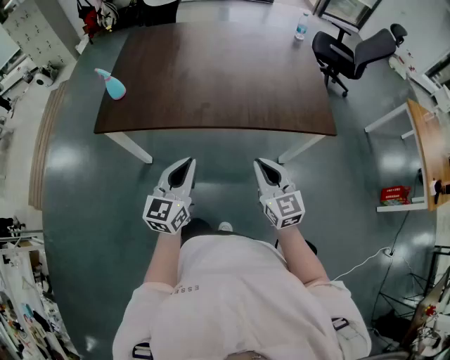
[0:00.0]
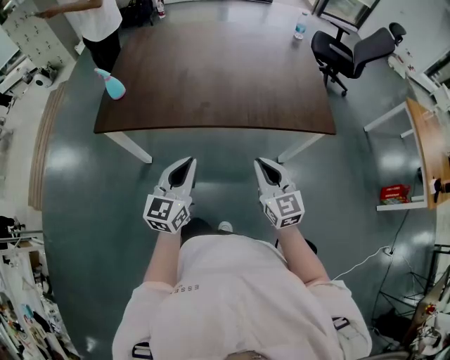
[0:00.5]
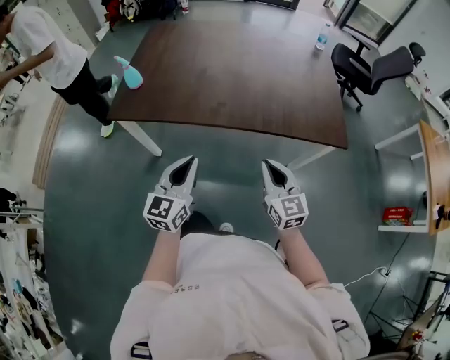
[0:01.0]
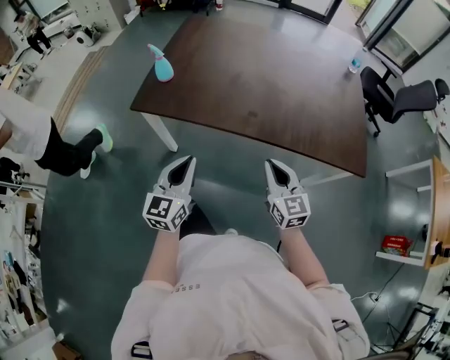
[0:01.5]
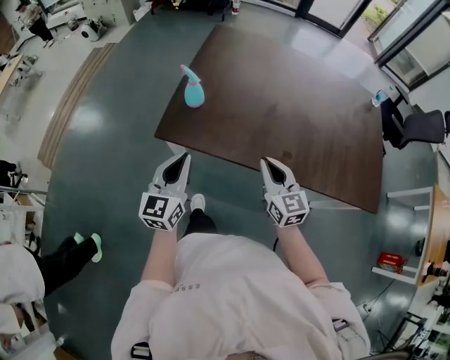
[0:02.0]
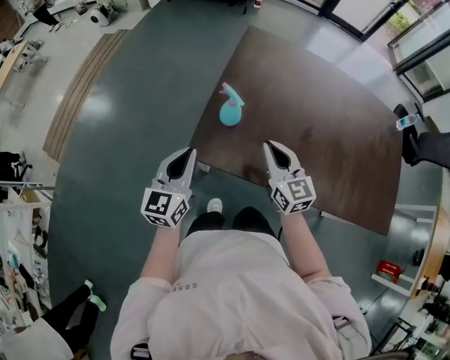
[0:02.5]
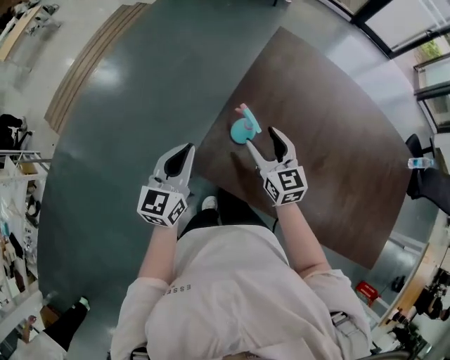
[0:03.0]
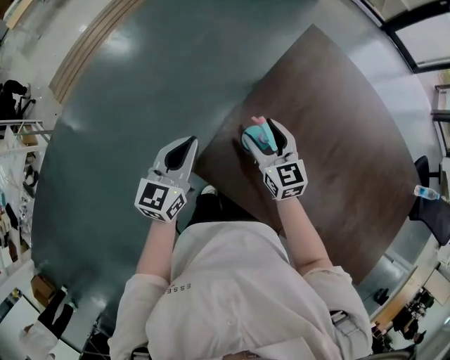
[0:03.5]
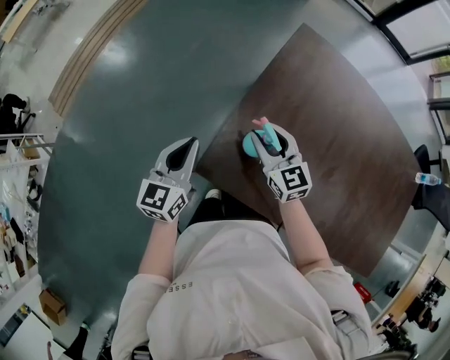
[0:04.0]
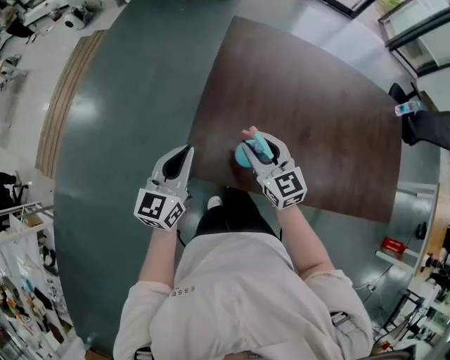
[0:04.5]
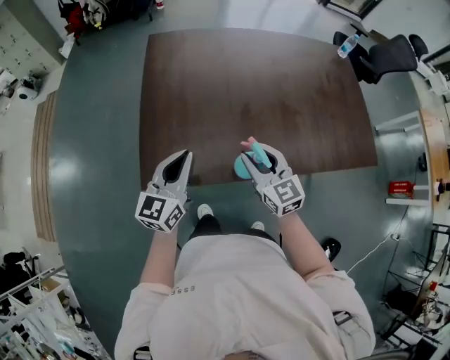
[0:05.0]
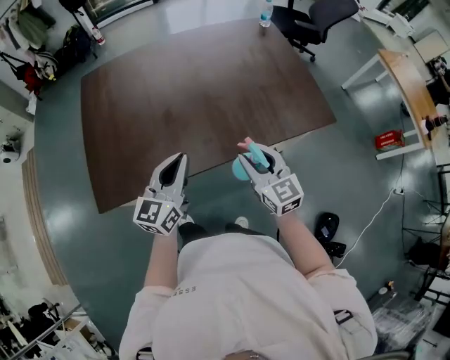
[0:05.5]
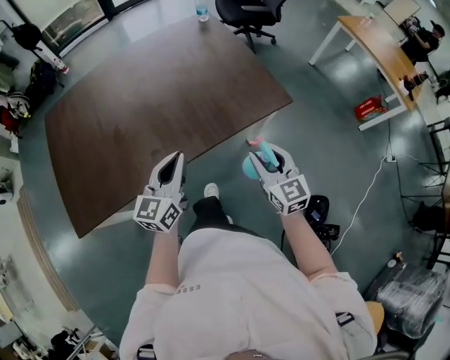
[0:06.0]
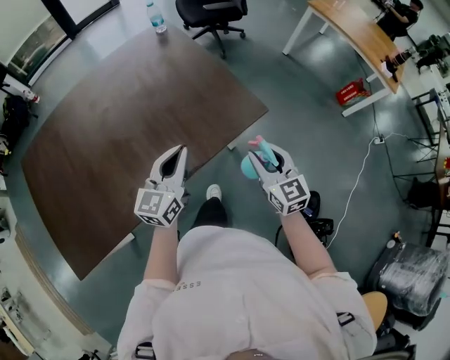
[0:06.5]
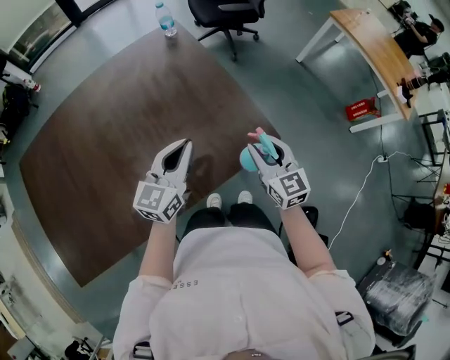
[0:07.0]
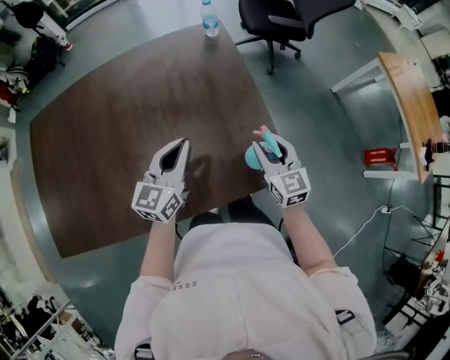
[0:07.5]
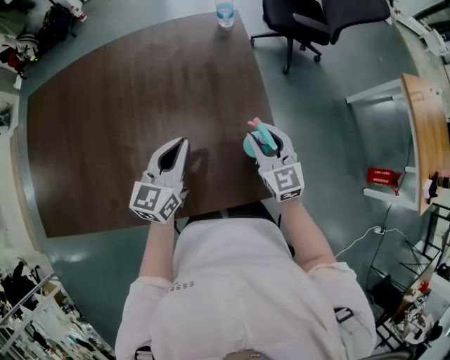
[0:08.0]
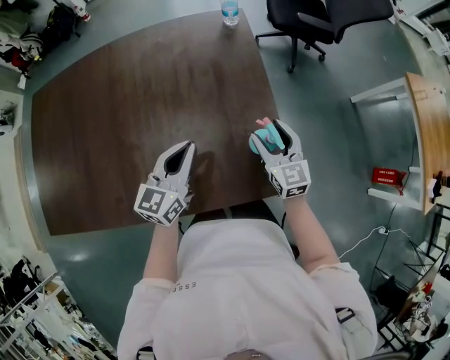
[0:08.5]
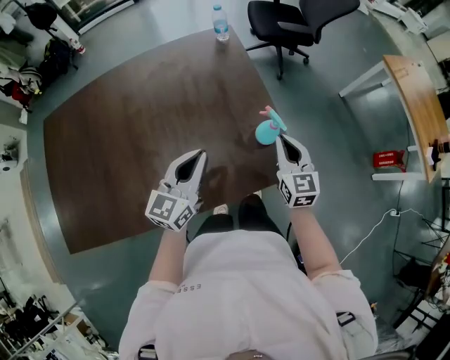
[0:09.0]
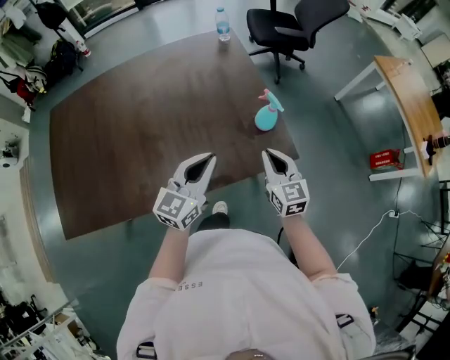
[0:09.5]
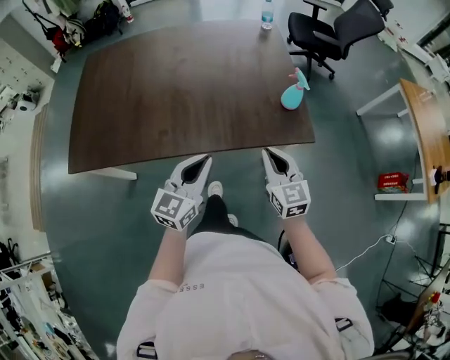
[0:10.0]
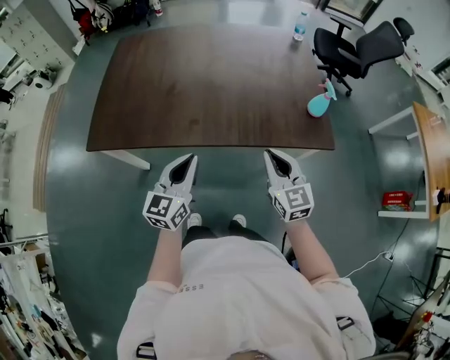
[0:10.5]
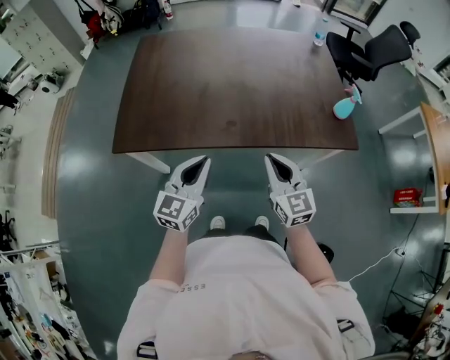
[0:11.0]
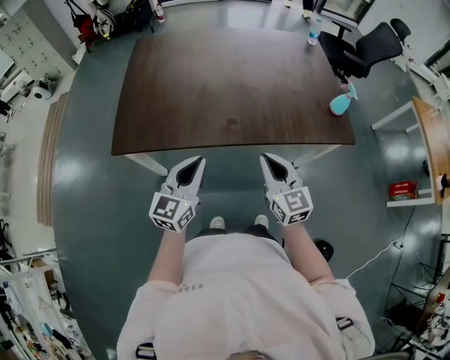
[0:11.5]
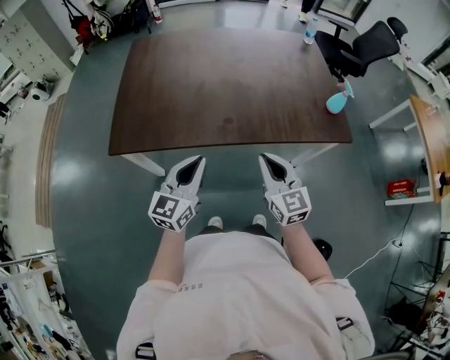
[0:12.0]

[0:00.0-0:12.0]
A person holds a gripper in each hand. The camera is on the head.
0:00.0 to 0:02.0: Both grippers move to the left and forward, some 30 cm.
0:02.0 to 0:04.0: Both grippers travel together forward and to the left, about 30 cm. The right gripper changes its angle by approximately 20 degrees, and opens its fingers.
0:04.0 to 0:06.0: The two grippers travel together, approximately 70 cm. The right gripper swivels approximately 60 degrees; the left gripper changes its angle by some 60 degrees.
0:06.0 to 0:08.0: The right gripper changes place by roughly 40 cm, while the left gripper shifts by roughly 35 cm.
0:08.0 to 0:10.0: Both grippers travel together backward, some 30 cm. The right gripper closes its fingers.
0:10.0 to 0:12.0: The grippers both shift to the left by roughly 25 cm.

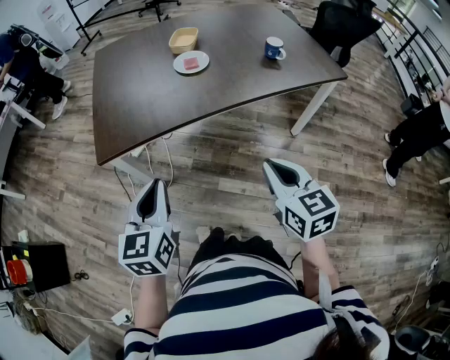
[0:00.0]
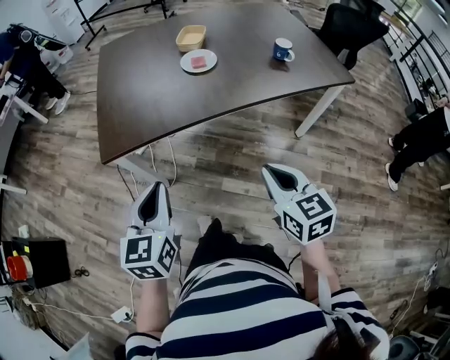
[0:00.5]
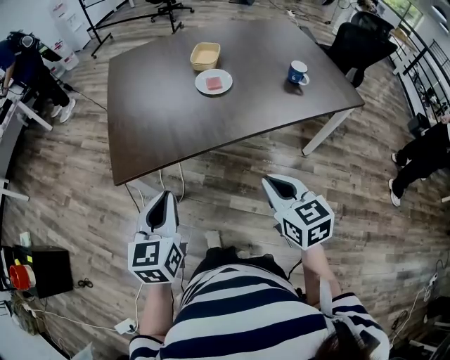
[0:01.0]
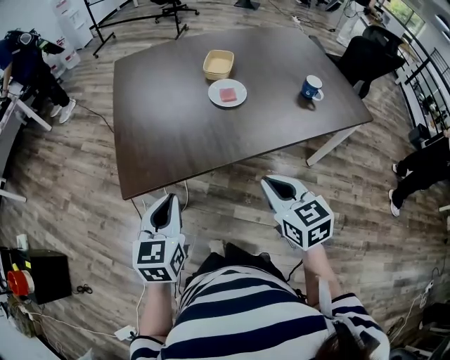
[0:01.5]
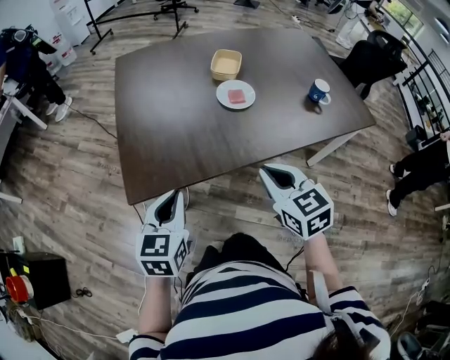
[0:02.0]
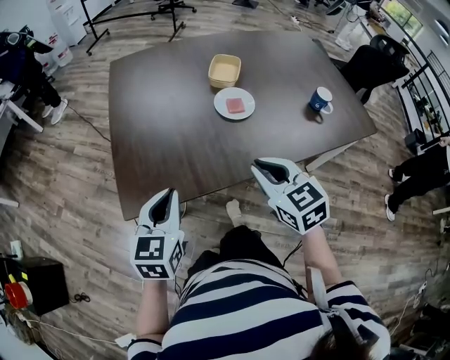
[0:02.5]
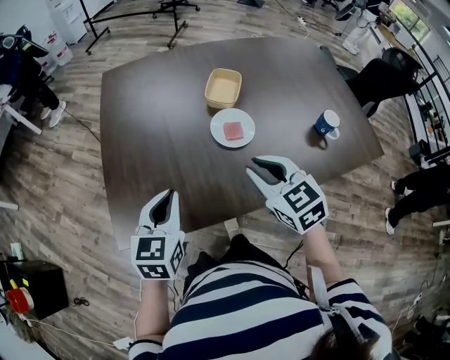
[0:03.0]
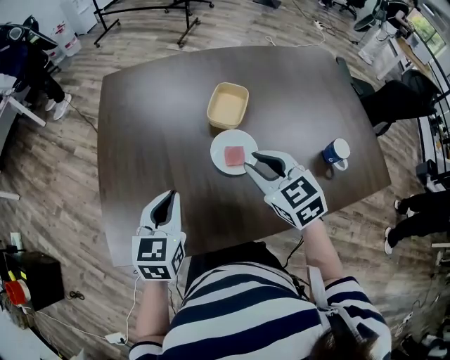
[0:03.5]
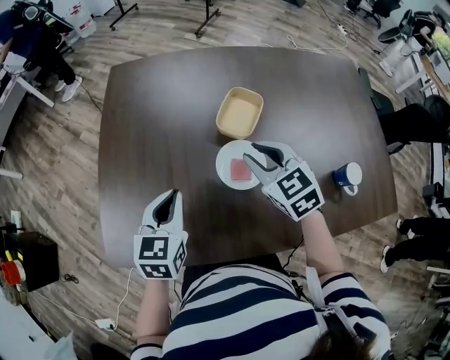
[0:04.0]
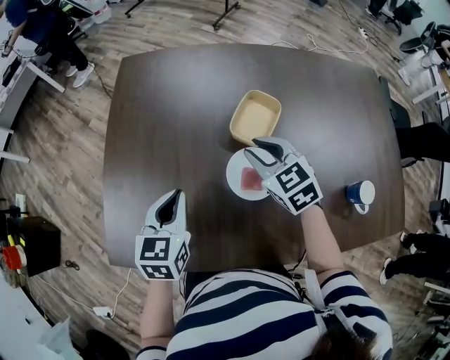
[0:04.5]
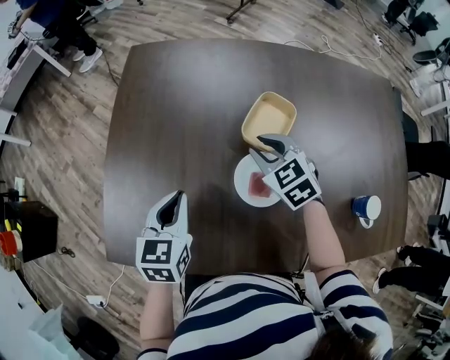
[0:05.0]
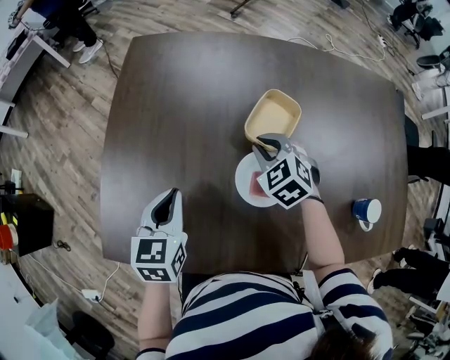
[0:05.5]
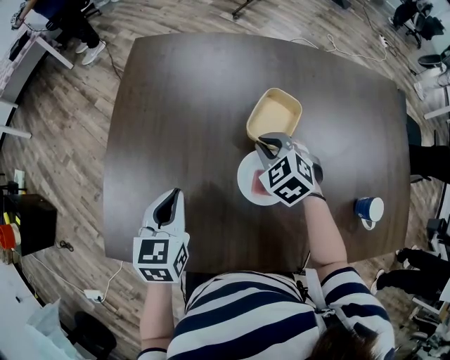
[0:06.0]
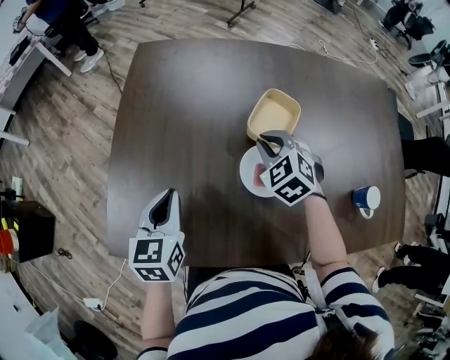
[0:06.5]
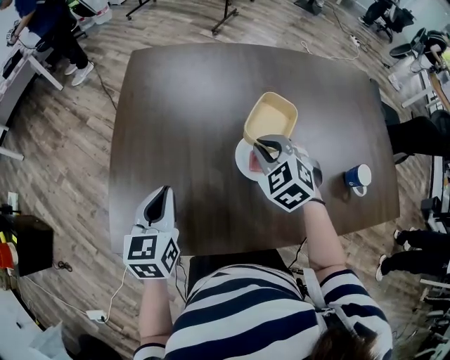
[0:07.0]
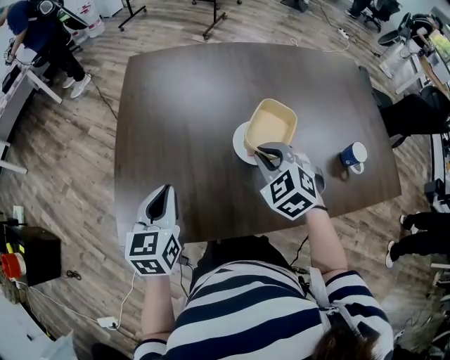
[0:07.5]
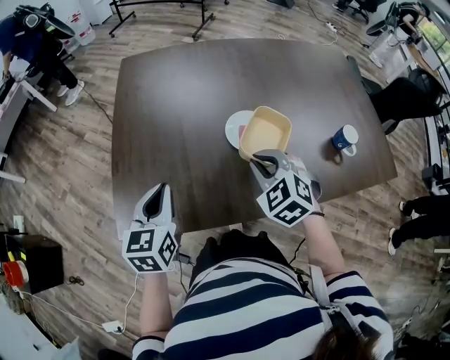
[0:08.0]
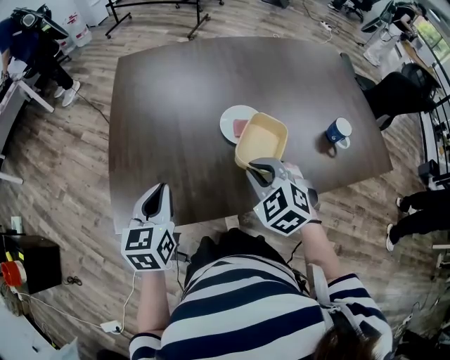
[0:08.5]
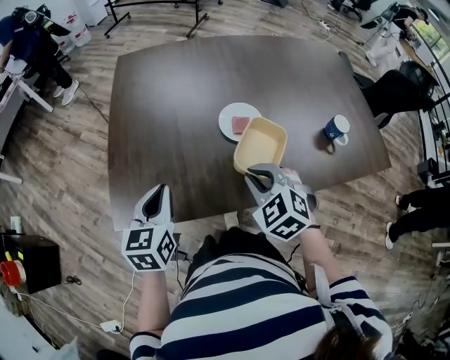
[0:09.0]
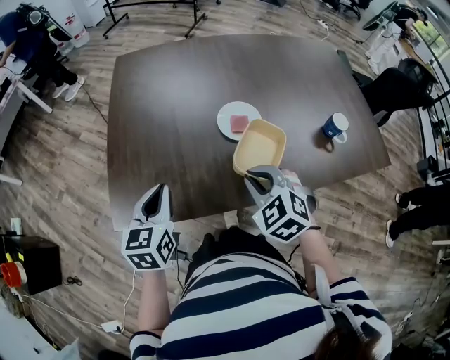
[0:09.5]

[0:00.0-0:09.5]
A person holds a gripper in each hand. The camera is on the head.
0:00.0 to 0:02.0: Both grippers travel together forward and to the left, roughly 25 cm.
0:02.0 to 0:04.0: The left gripper goes roughly 35 cm forward and to the right; the right gripper is displaced forward by some 40 cm, rotates roughly 20 degrees, and opens up.
0:04.0 to 0:05.5: The left gripper goes about 5 cm forward. The right gripper heads downward and forward, covering about 15 cm, and changes its angle by some 20 degrees.
0:05.5 to 0:07.5: The right gripper goes approximately 20 cm backward and upward; the left gripper shifts roughly 15 cm backward, to the left and upward.
0:07.5 to 0:09.5: The right gripper shifts approximately 15 cm backward. The left gripper heads backward, covering some 5 cm.

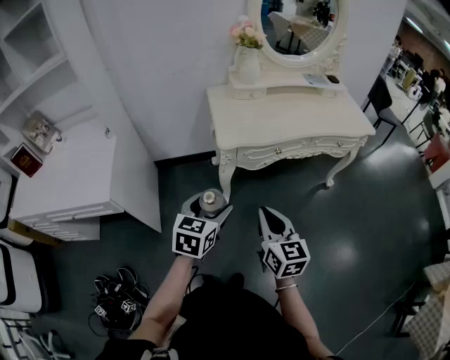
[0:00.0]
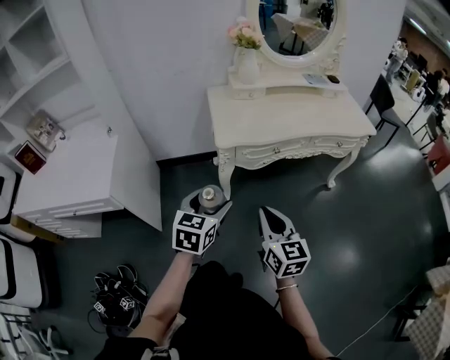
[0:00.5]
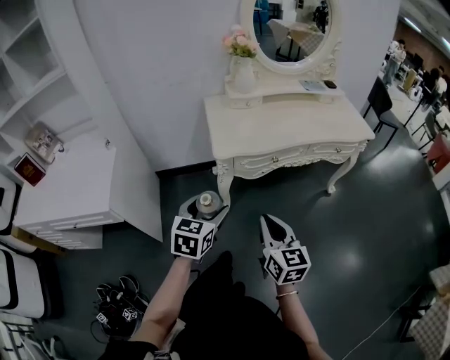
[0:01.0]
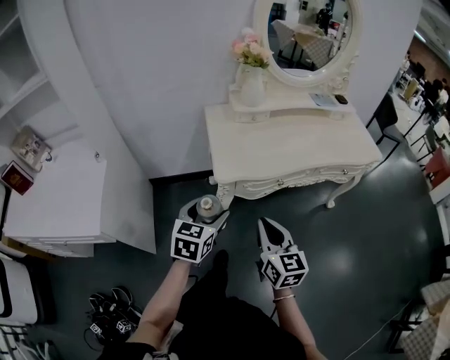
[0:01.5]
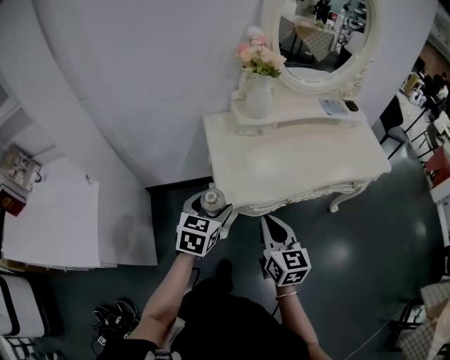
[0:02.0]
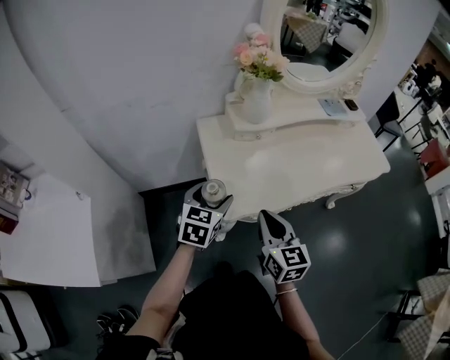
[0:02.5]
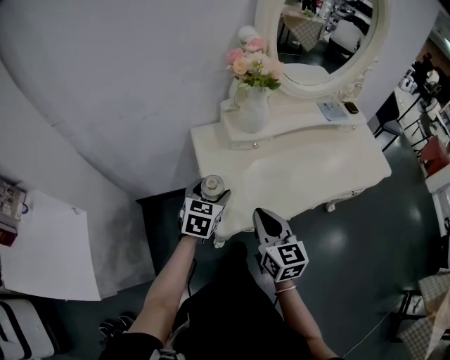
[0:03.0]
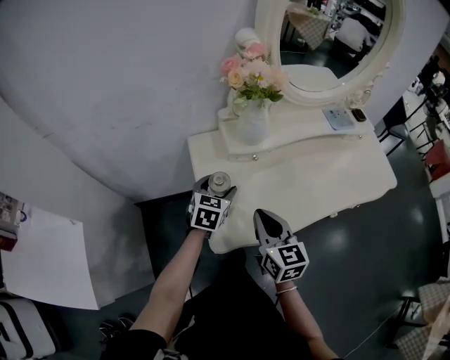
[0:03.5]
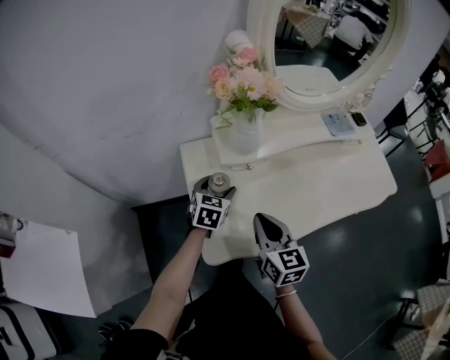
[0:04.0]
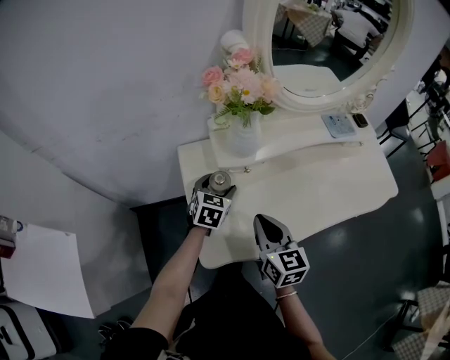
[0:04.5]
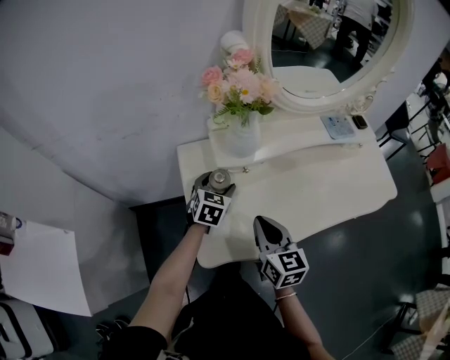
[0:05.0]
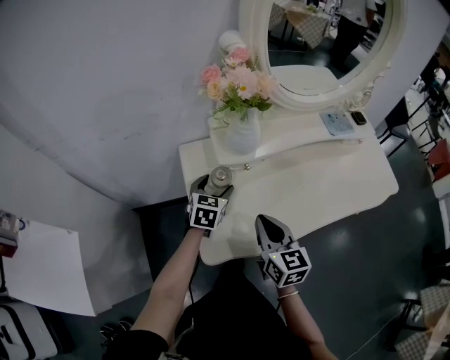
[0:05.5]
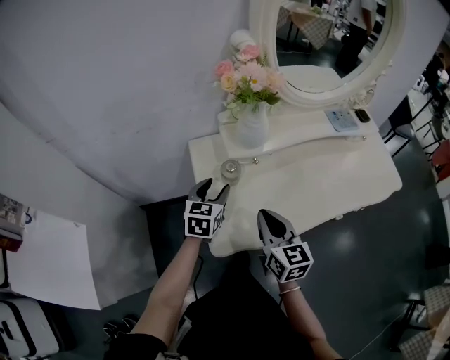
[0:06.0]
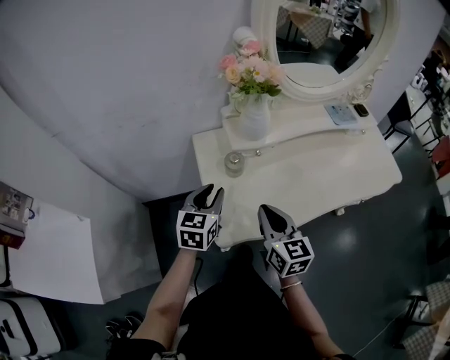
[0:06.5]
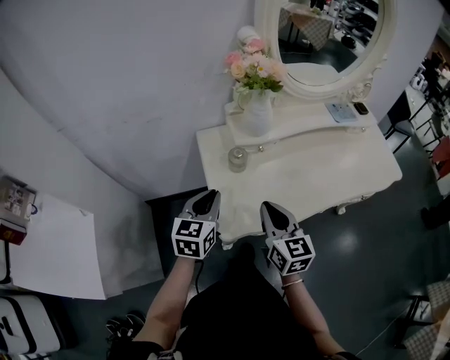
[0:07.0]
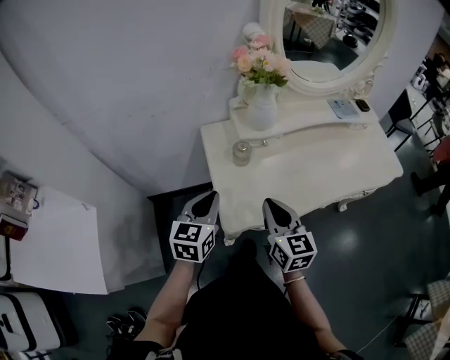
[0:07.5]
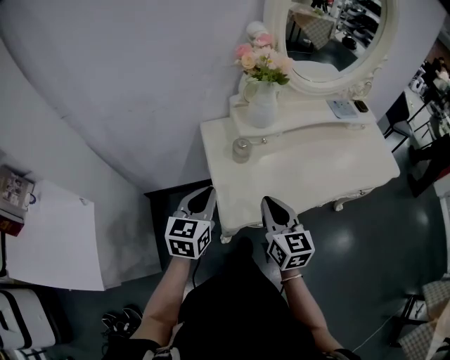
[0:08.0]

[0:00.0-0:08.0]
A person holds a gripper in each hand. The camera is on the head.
0:00.0 to 0:02.0: Both grippers travel together forward, approximately 25 cm.
0:02.0 to 0:04.0: Both grippers travel together forward, about 25 cm.
0:04.0 to 0:06.0: The left gripper shifts by roughly 5 cm.
0:06.0 to 0:08.0: The left gripper travels backward, upward and to the left by some 15 cm, and closes up. Meanwhile the right gripper is displaced backward by approximately 5 cm.
